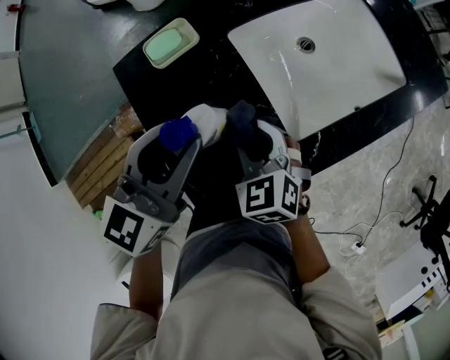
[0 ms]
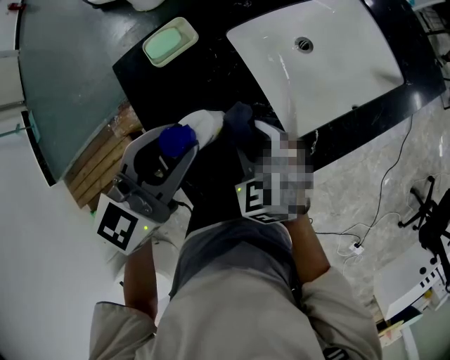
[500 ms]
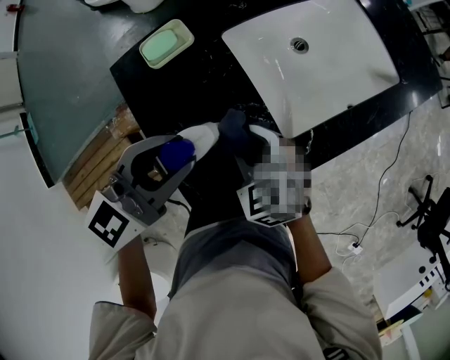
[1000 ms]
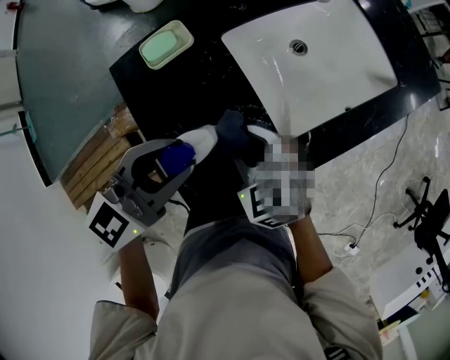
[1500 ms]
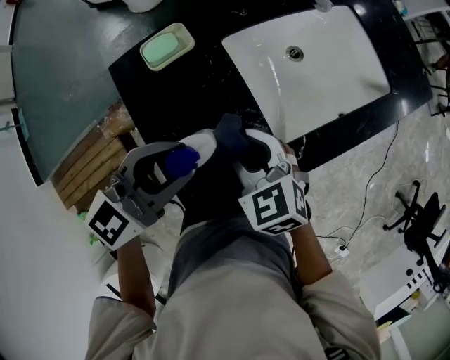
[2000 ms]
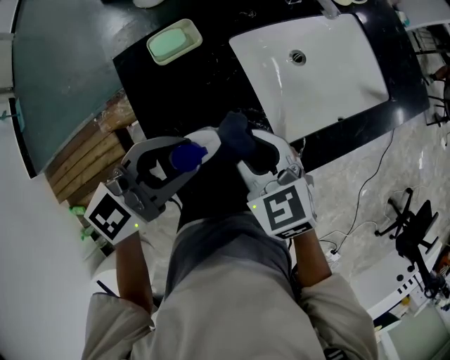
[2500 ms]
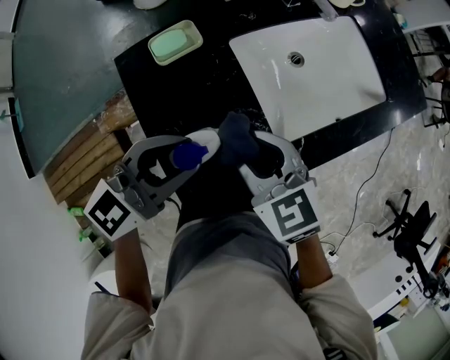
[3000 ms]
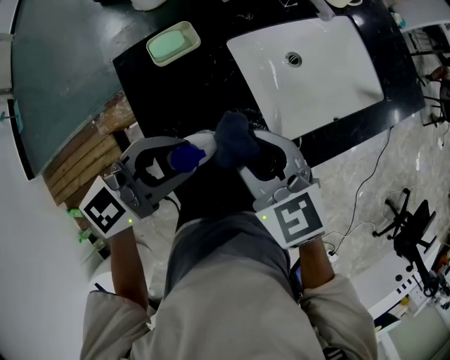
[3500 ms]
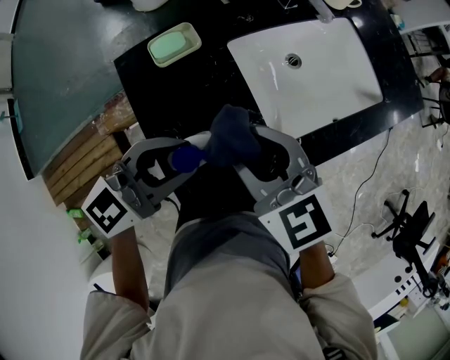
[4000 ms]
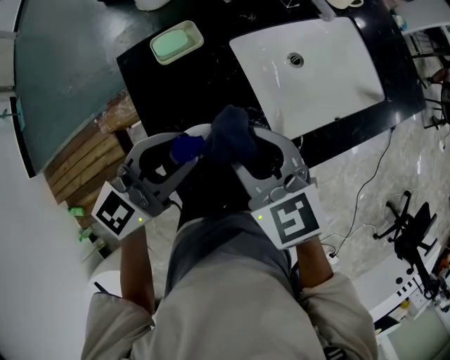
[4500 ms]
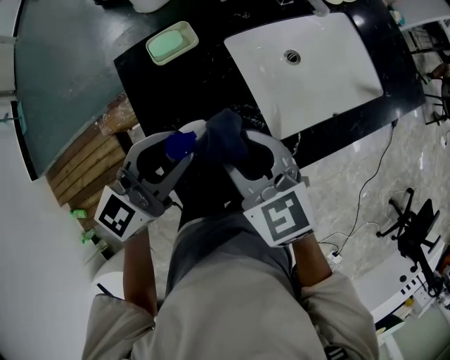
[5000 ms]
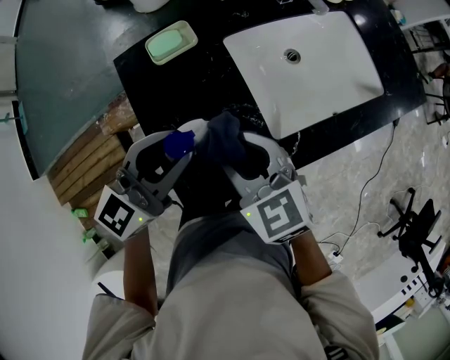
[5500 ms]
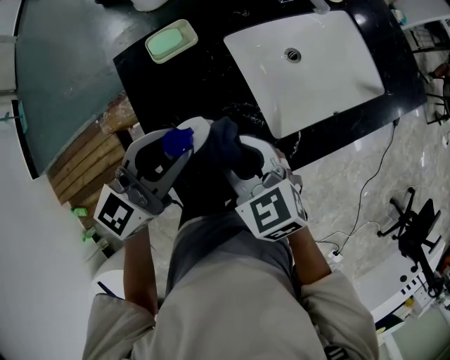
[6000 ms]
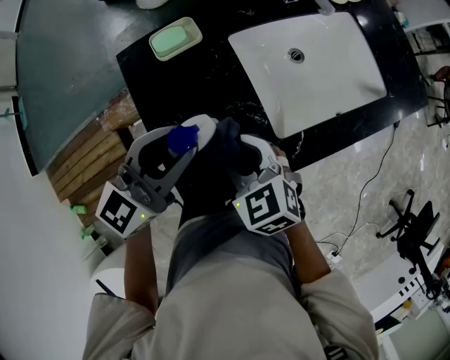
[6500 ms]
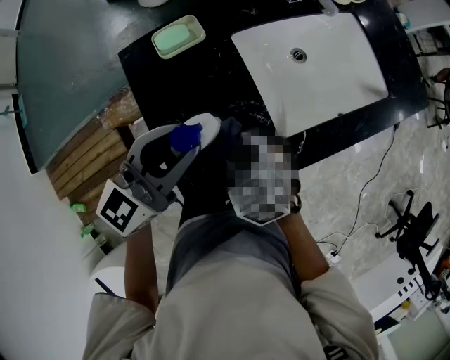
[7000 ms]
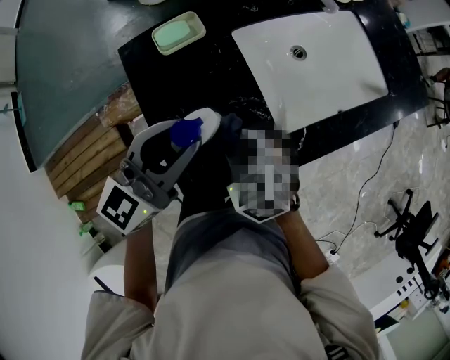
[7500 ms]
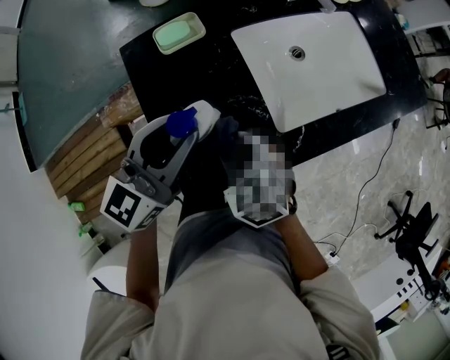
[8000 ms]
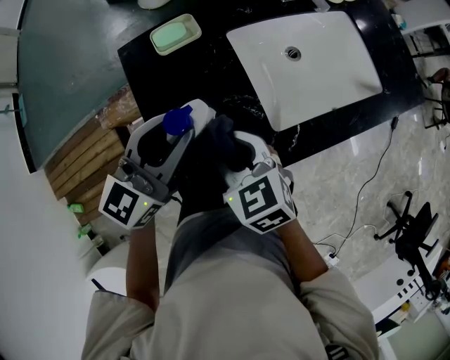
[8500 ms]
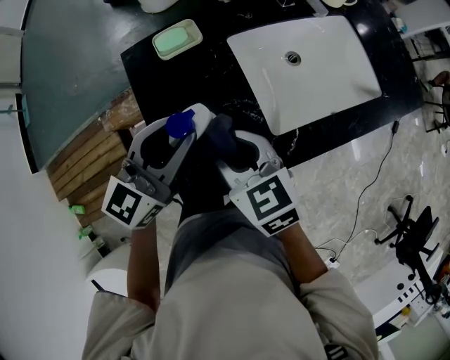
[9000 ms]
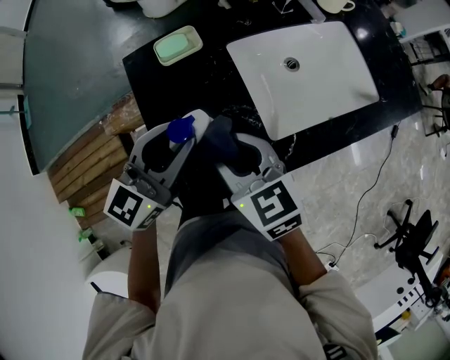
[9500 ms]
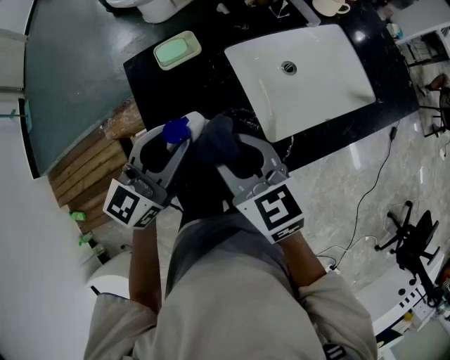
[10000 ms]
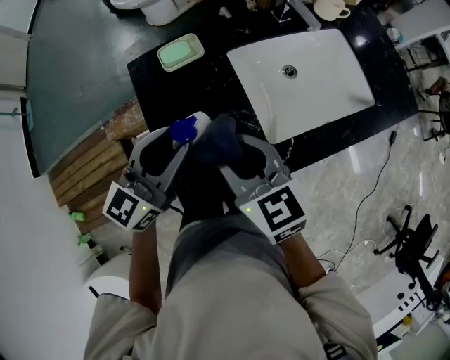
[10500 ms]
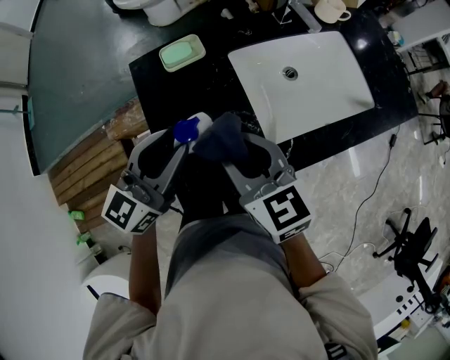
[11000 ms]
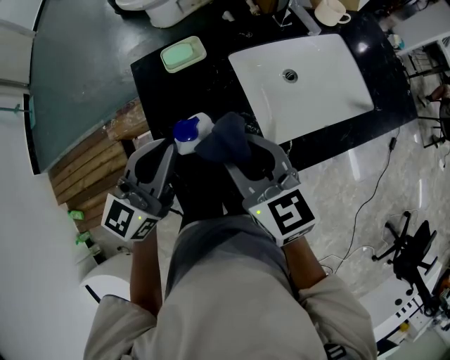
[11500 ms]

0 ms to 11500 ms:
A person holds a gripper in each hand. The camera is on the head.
0 ms to 2000 ms: The left gripper ends up approximately 5 cm from where it was, and turns by approximately 20 degrees.
2000 ms to 4000 ms: The right gripper shifts about 10 cm upward.
4000 ms to 6000 ms: The right gripper heads downward, covering some 5 cm.
6000 ms to 7500 ms: The right gripper heads downward, covering about 5 cm.
7500 ms to 9500 ms: The right gripper shifts about 10 cm upward, and changes its angle by approximately 30 degrees.
9500 ms to 11500 ms: The right gripper moves some 5 cm, while the left gripper closes its fingers.

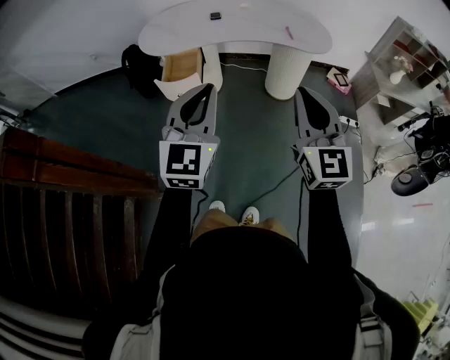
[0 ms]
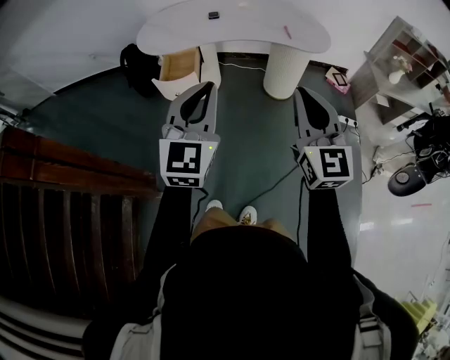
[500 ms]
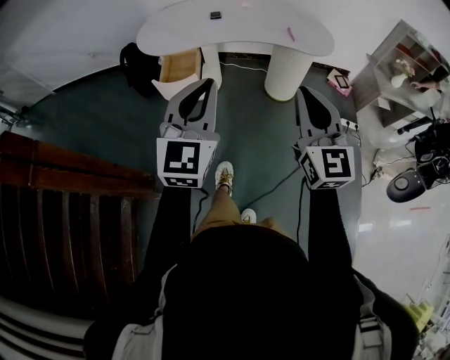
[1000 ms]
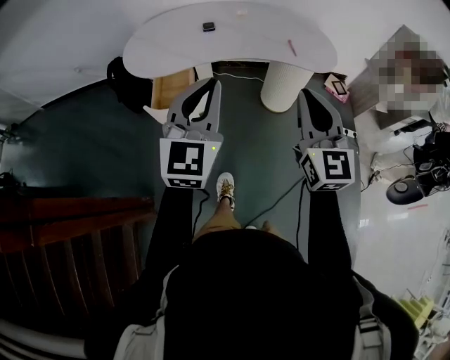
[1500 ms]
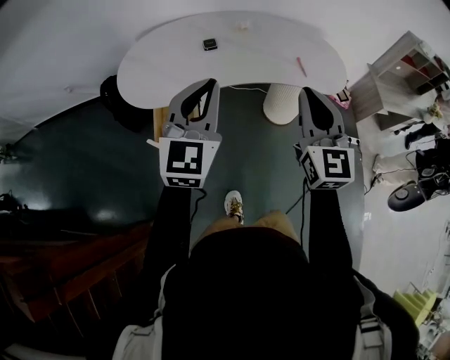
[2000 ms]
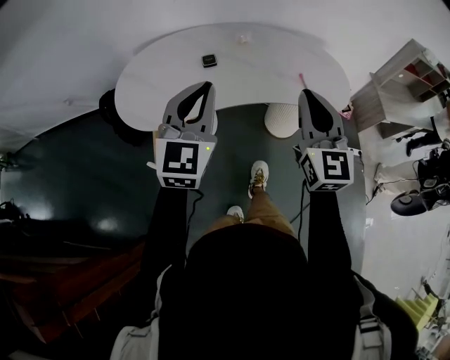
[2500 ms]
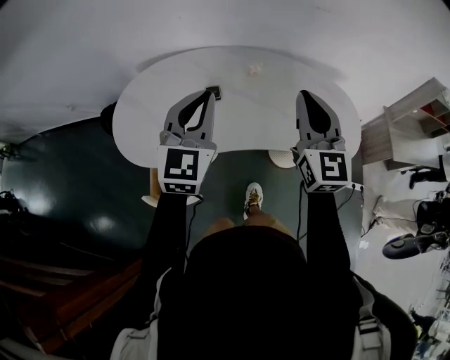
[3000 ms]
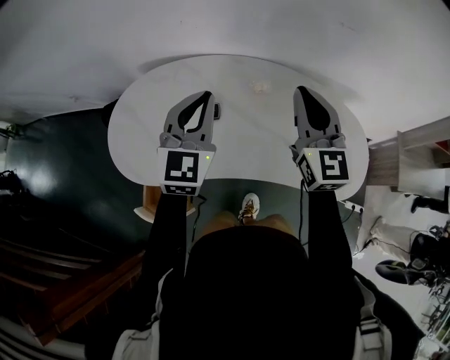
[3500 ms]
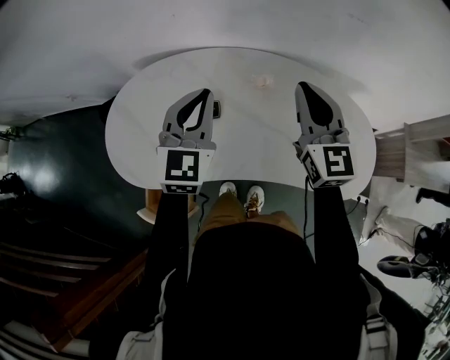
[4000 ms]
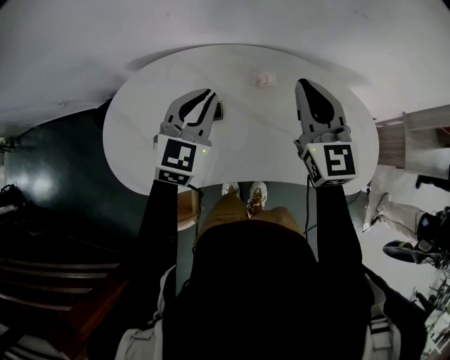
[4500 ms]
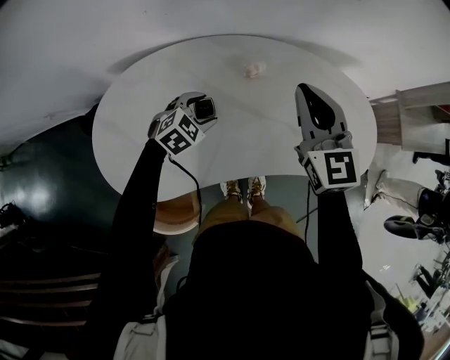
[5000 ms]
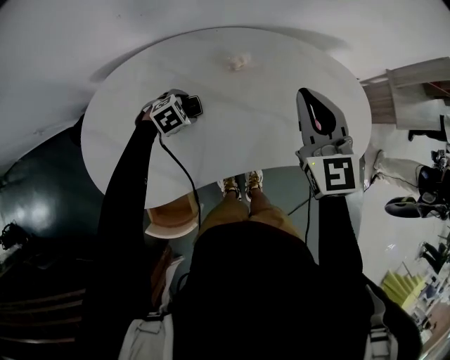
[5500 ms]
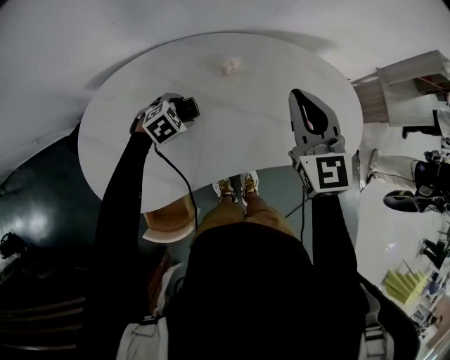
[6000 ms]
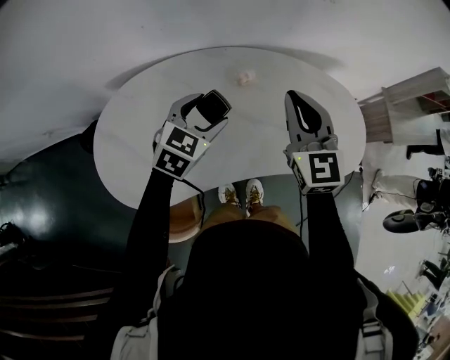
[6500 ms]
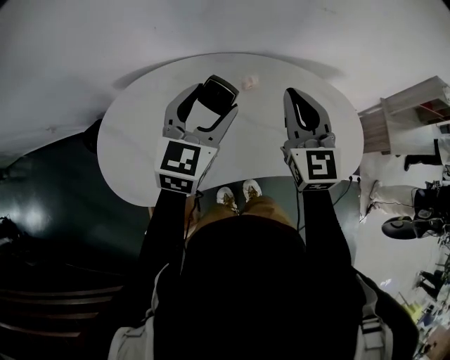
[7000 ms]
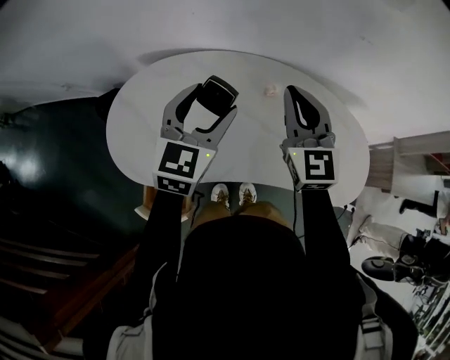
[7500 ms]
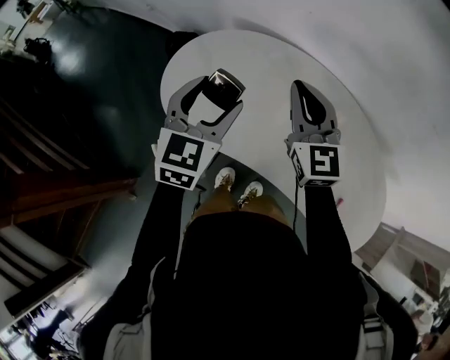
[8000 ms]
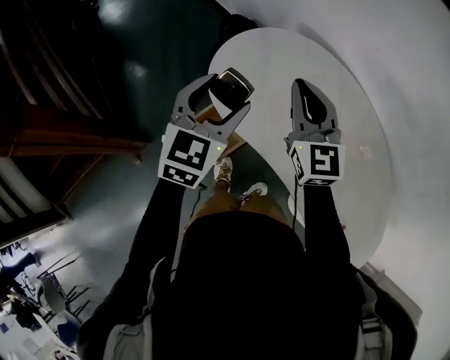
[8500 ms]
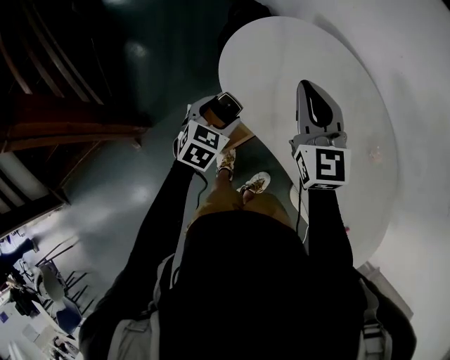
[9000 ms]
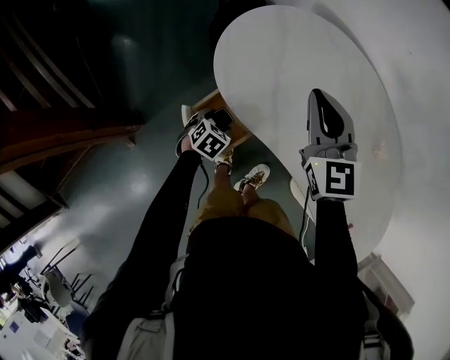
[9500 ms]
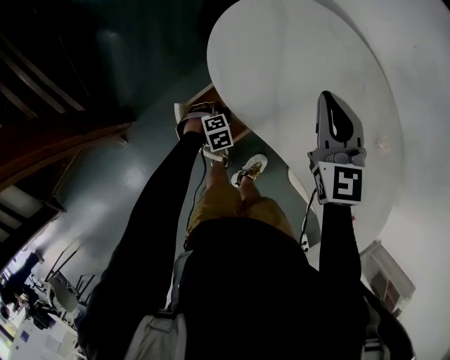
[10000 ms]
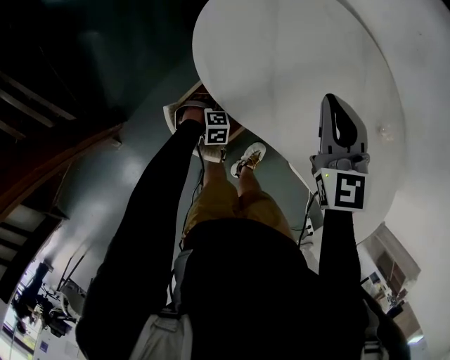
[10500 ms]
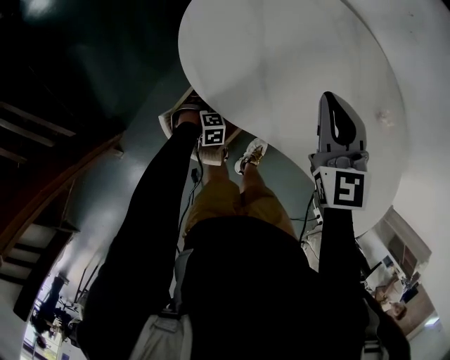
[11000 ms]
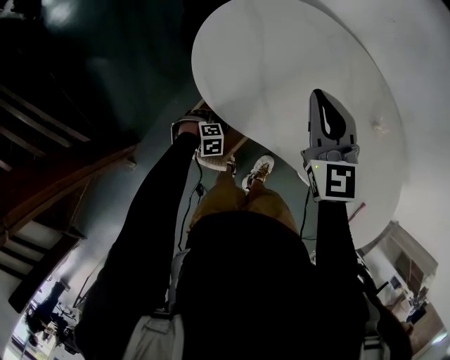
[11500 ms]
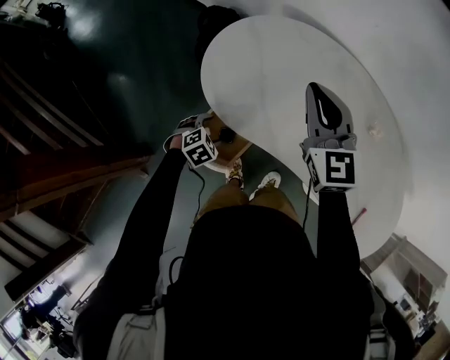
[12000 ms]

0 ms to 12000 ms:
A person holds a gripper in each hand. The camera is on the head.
0 ms to 2000 ms: The two grippers go approximately 25 cm forward.
2000 ms to 4000 ms: Both grippers travel together forward, approximately 35 cm.
4000 ms to 6000 ms: The right gripper changes place by about 5 cm, while the left gripper goes some 30 cm downward, tilts its fingers some 50 degrees downward, and opens up.
6000 ms to 8000 ms: The right gripper changes place by about 25 cm, and swivels some 50 degrees. Meanwhile the left gripper is displaced upward by some 30 cm, and points its fingers about 50 degrees further upward.
8000 ms to 10000 ms: The left gripper heads downward, covering approximately 50 cm, and tilts its fingers about 60 degrees downward. Meanwhile the right gripper moves roughly 15 cm, and changes its angle by some 20 degrees.
10000 ms to 12000 ms: The left gripper shifts approximately 10 cm upward, while the right gripper travels upward by roughly 5 cm.

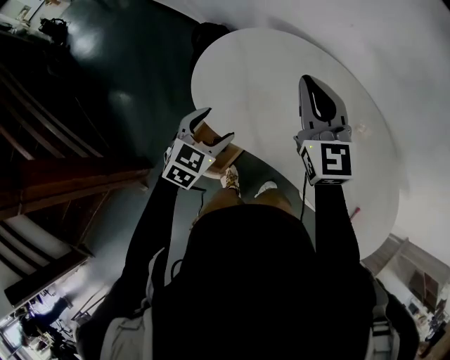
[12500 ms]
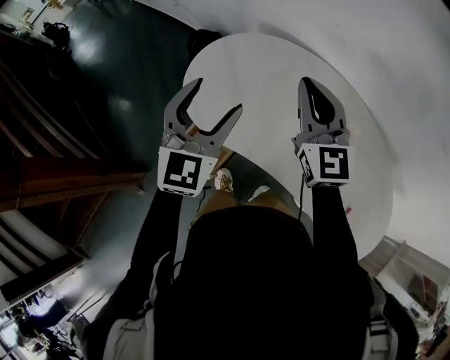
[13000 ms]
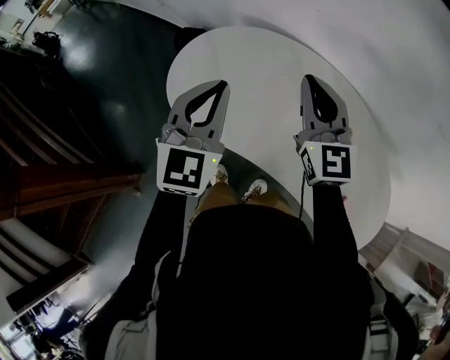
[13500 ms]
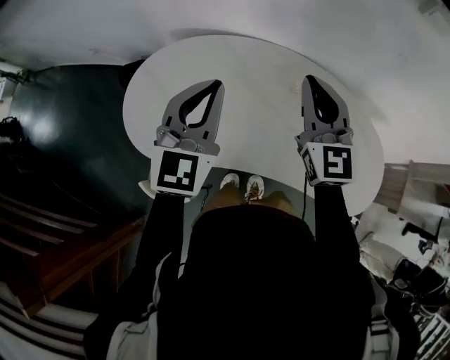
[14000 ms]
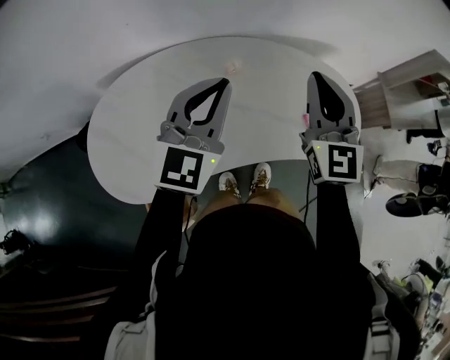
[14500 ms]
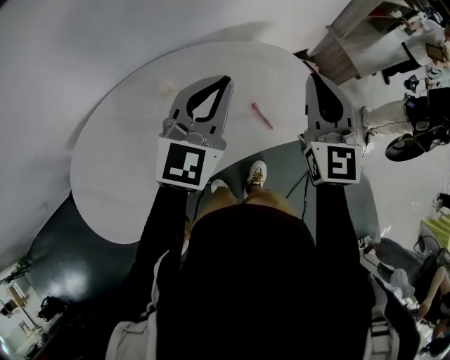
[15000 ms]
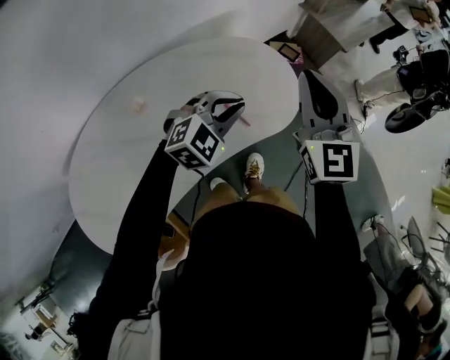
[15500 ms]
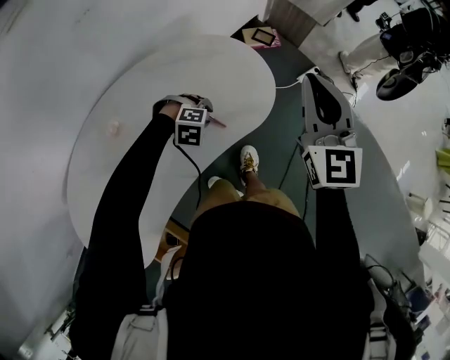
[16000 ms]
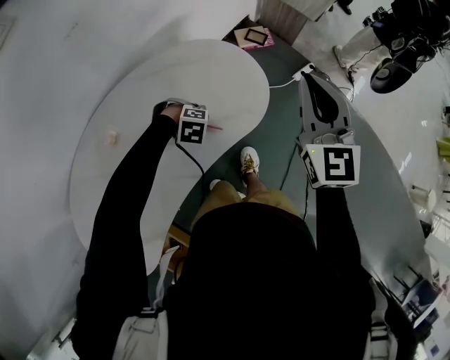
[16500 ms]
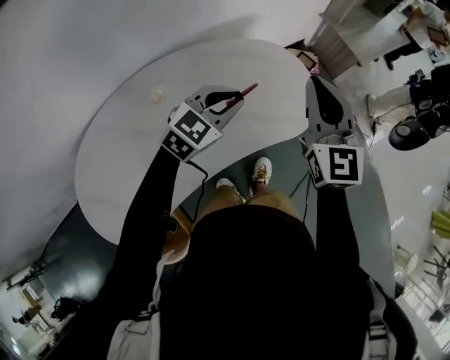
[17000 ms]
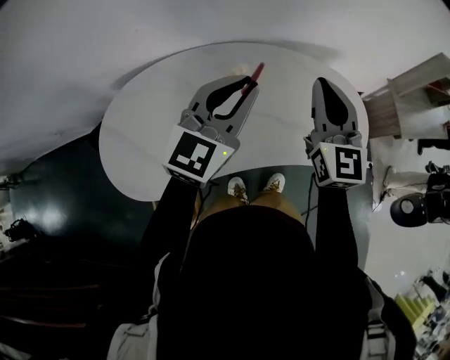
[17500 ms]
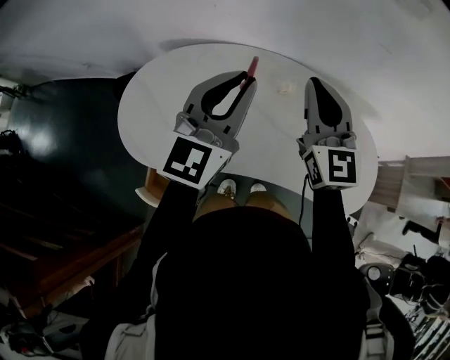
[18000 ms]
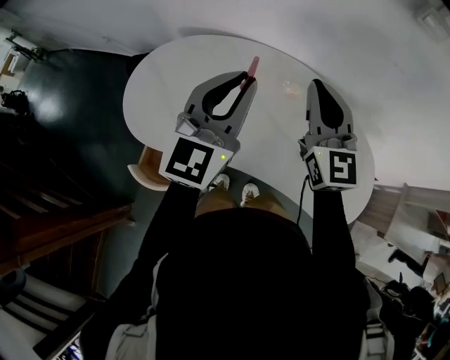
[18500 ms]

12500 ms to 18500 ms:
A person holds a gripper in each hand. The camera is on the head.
12500 ms to 14500 ms: The left gripper shifts by some 40 cm, turns by roughly 50 degrees, and closes up, while the right gripper shifts by some 40 cm, and rotates approximately 60 degrees.
14500 ms to 16500 ms: The left gripper goes some 40 cm downward, and angles its fingers downward, by approximately 80 degrees. The right gripper moves roughly 35 cm, and changes its angle by approximately 40 degrees.
16500 ms to 18500 ms: The right gripper shifts by about 50 cm, and rotates about 70 degrees; the left gripper heads upward, covering roughly 40 cm, and tips its fingers upward by roughly 80 degrees.
